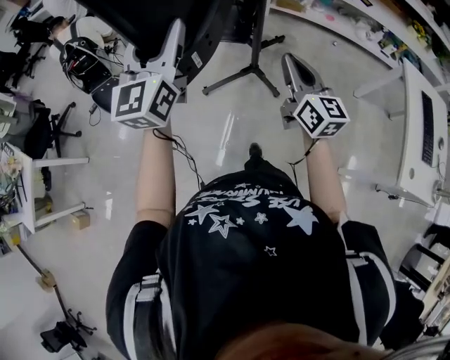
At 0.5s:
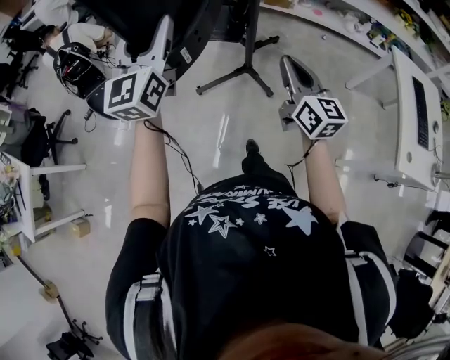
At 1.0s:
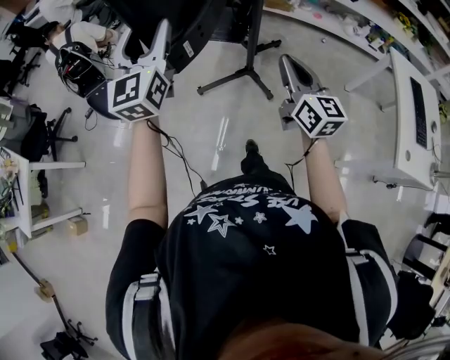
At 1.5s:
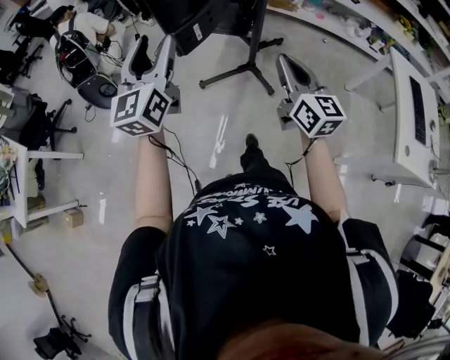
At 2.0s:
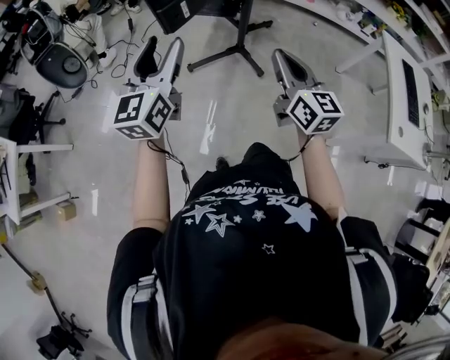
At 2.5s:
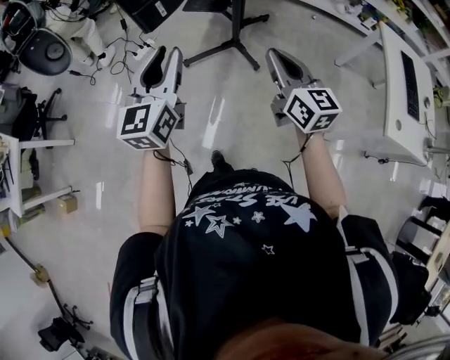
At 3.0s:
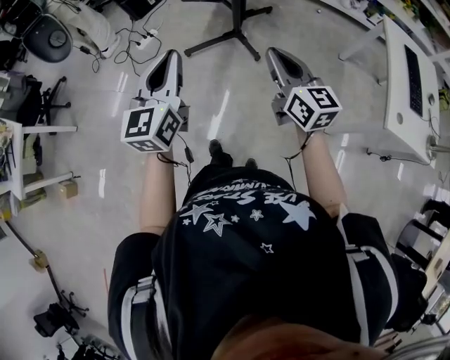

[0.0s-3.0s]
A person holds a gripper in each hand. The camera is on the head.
0.0s to 1.5s: The right gripper moves backward, about 10 cm. The left gripper is displaced backward and to the left by some 15 cm.
1.5s to 3.0s: The right gripper is displaced backward and to the right by some 15 cm; the left gripper goes approximately 25 cm backward, to the right and downward, and closes.

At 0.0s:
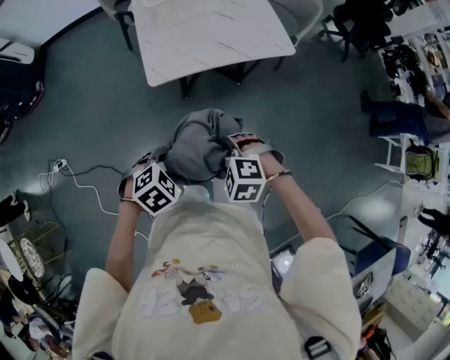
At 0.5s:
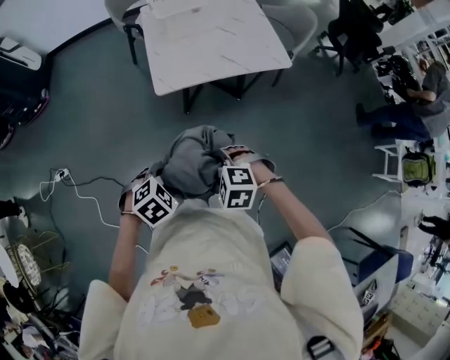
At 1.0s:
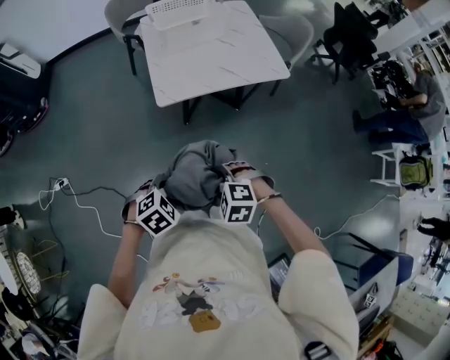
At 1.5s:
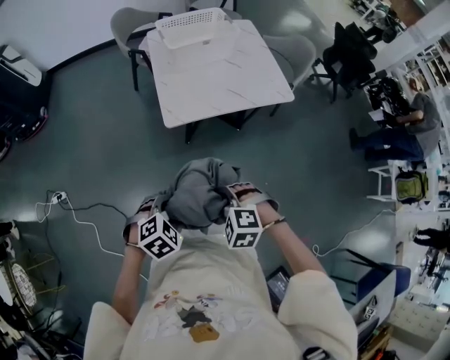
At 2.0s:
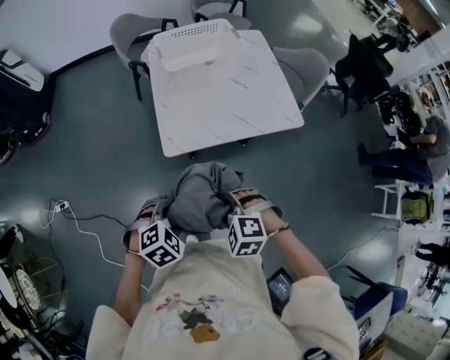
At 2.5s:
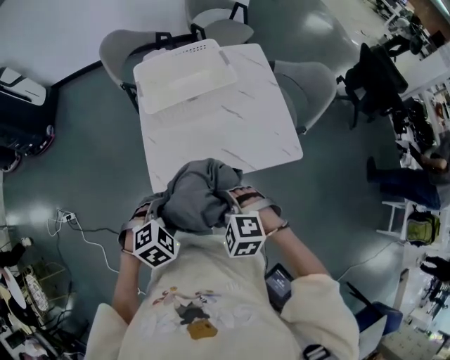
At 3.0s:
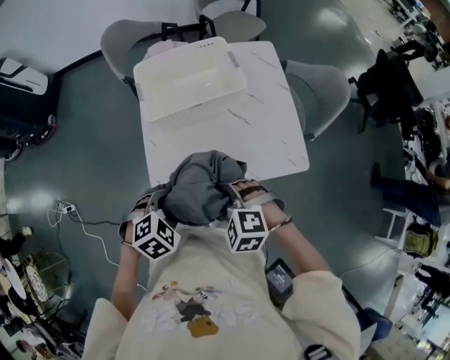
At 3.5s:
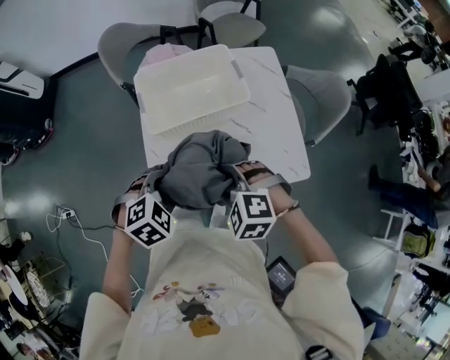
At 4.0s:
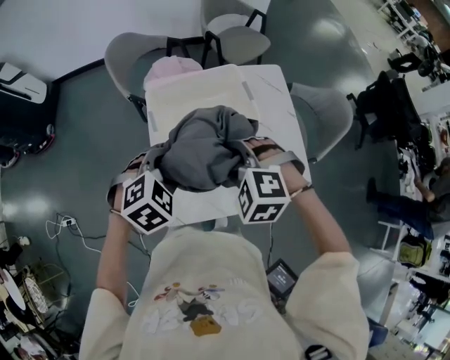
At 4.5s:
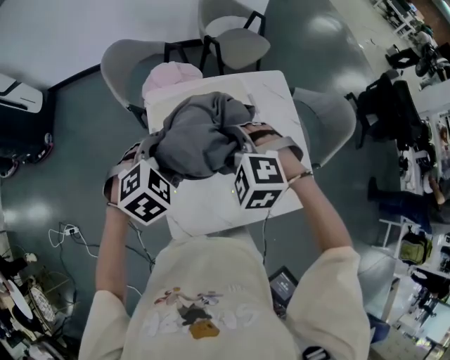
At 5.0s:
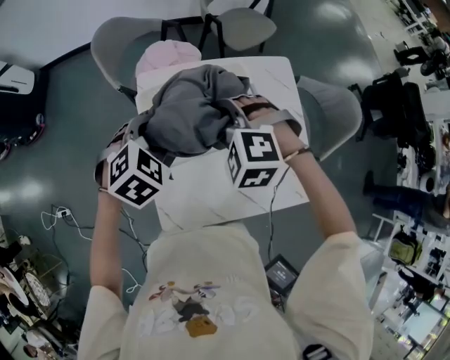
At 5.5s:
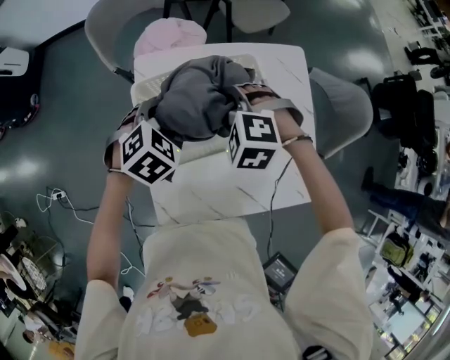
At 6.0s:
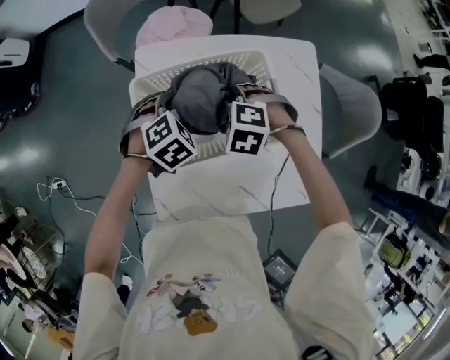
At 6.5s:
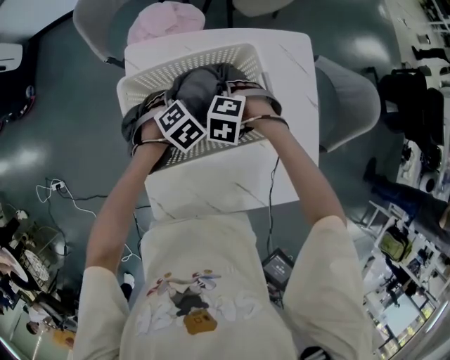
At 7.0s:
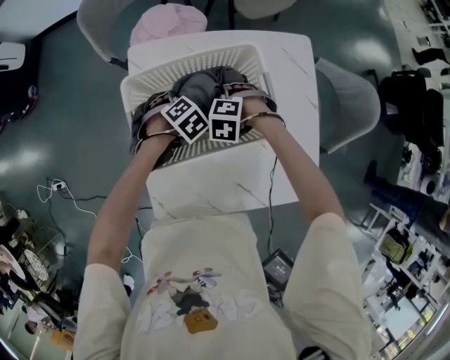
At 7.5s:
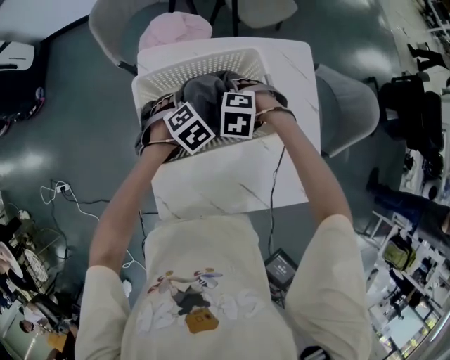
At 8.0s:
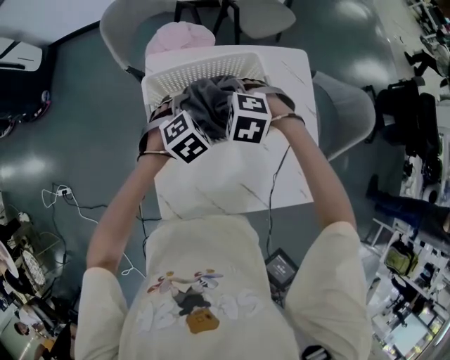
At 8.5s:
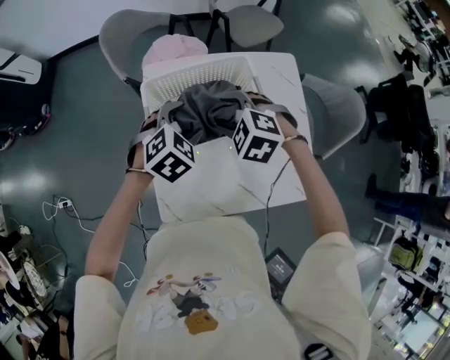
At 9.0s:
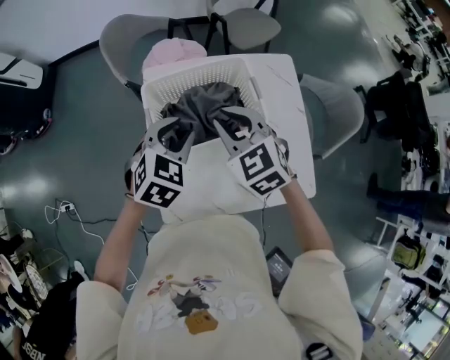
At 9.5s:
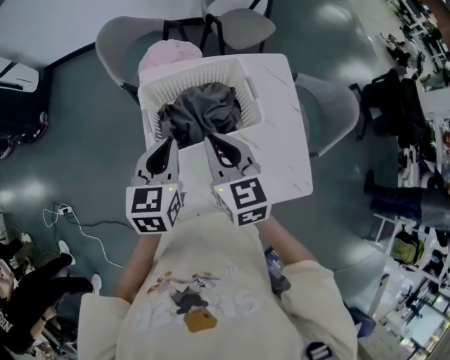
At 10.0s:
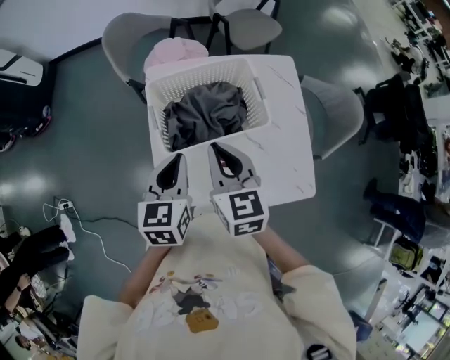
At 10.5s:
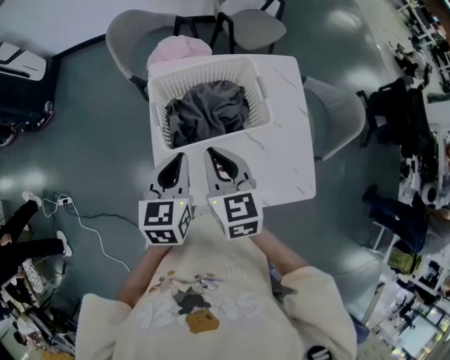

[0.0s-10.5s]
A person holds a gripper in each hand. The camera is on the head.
0.0s to 2.0s: Both grippers travel together forward and to the left, roughly 15 cm.
2.0s to 4.0s: The two grippers travel together, forward, about 50 cm.
4.0s to 6.5s: Both grippers travel together downward, approximately 25 cm. The right gripper rotates about 30 degrees; the left gripper swivels about 20 degrees.
6.5s to 8.5s: The two grippers go roughly 20 cm upward. The right gripper rotates some 30 degrees. Meanwhile the left gripper swivels some 20 degrees, and opens its fingers.
8.5s to 10.5s: The right gripper shifts some 10 cm backward and upward, rolls clockwise, seen from behind, by about 50 degrees, and closes its fingers. The left gripper heads backward, upward and to the left, covering approximately 10 cm, rotates around the line of its fingers by roughly 50 degrees, counterclockwise from behind, and closes.

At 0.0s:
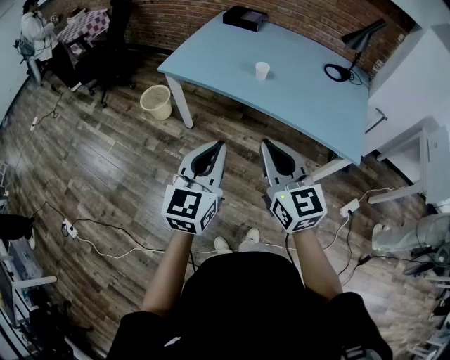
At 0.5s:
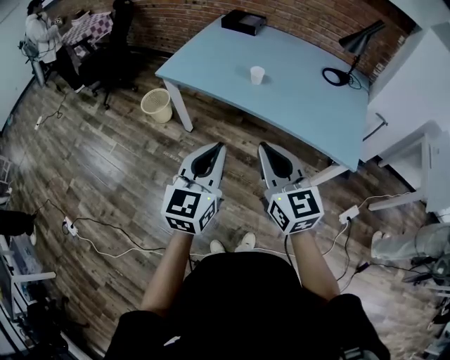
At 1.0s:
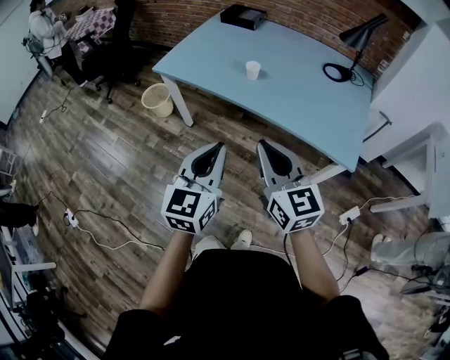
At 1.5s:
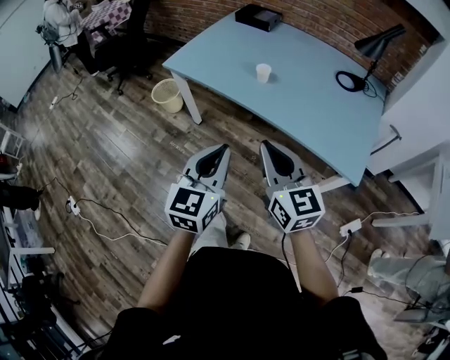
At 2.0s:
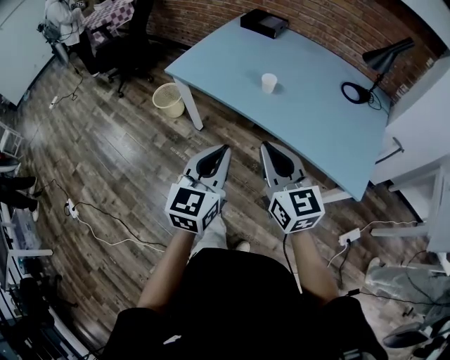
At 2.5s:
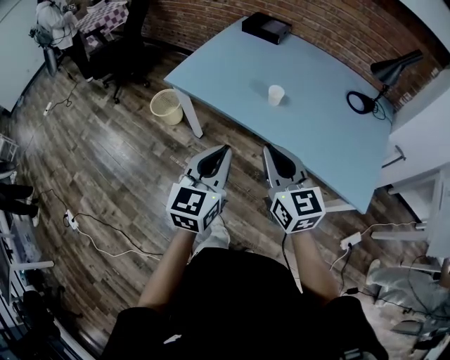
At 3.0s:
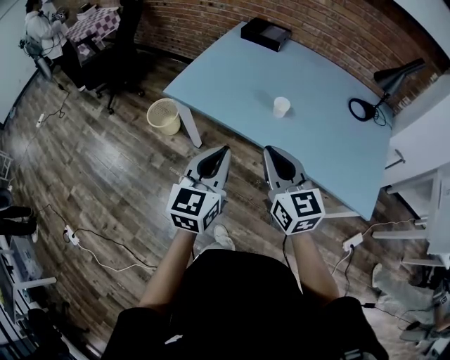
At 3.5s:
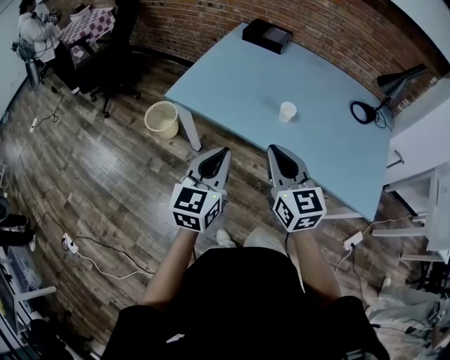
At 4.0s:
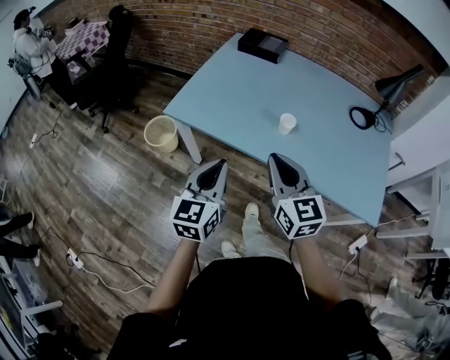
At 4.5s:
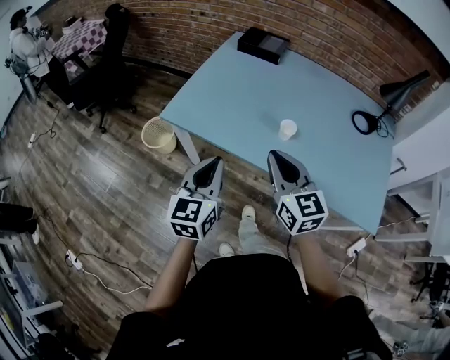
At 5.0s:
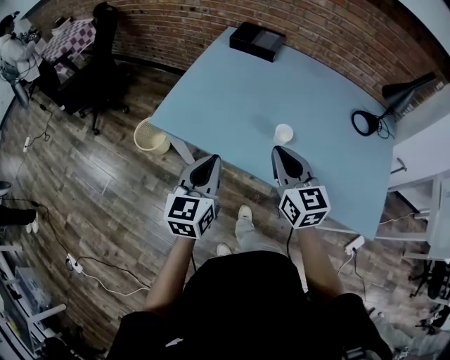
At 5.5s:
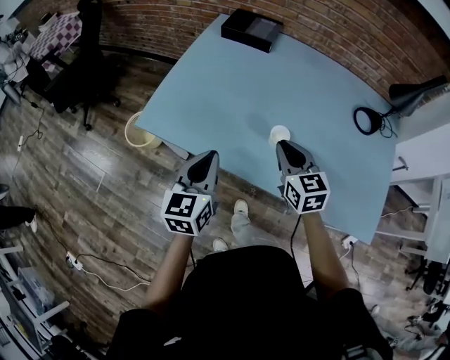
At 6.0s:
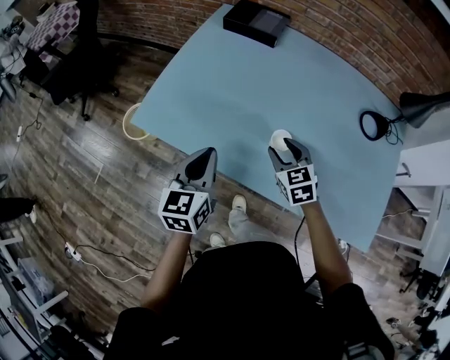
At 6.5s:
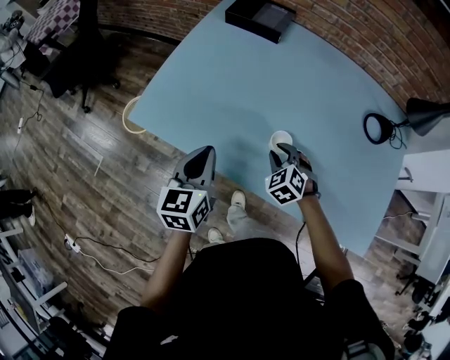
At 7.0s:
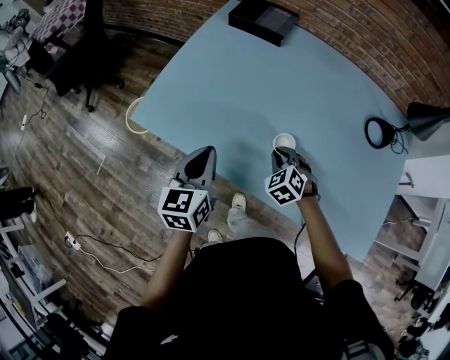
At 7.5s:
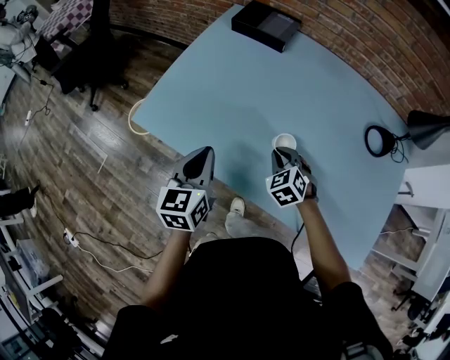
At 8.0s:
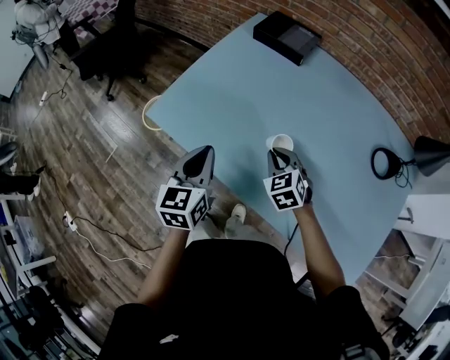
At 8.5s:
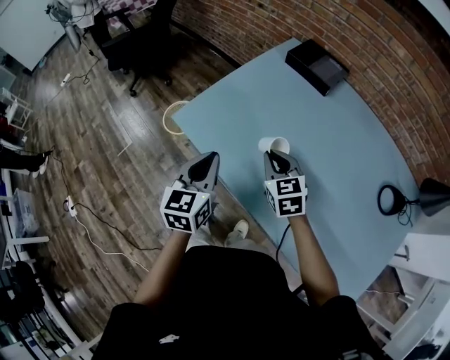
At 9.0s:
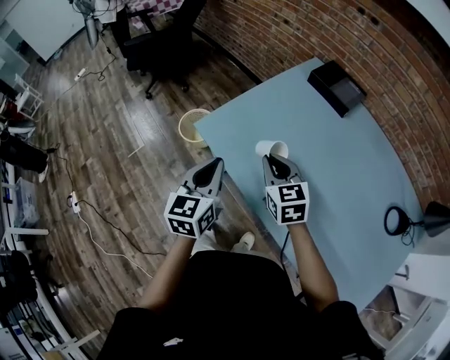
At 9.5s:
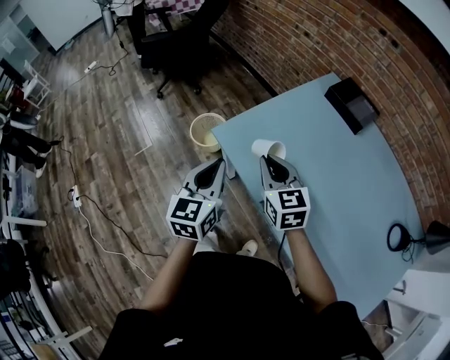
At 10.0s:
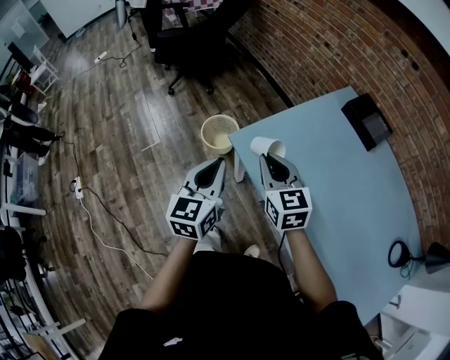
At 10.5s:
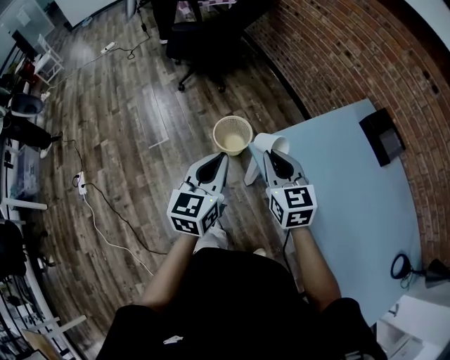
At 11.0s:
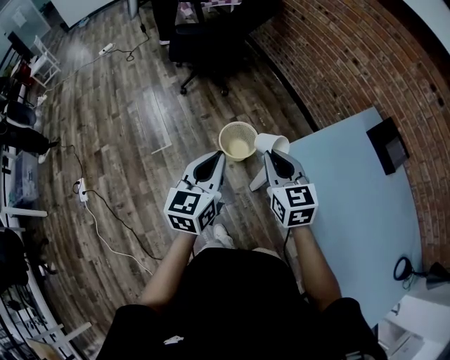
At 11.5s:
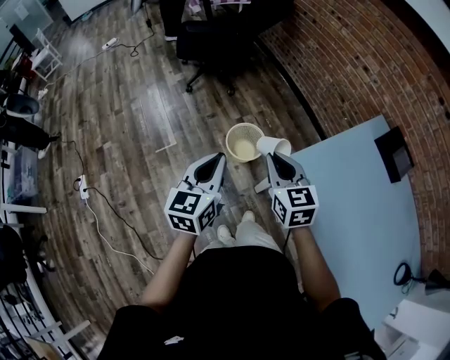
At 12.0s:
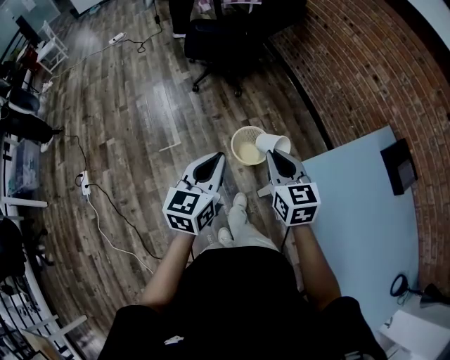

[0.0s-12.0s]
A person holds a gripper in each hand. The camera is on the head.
0.0s to 2.0s: The right gripper travels forward and to the right by roughly 10 cm. The left gripper goes about 10 cm to the right and forward.
2.0s to 4.0s: Both grippers move forward and to the left, about 25 cm.
4.0s to 6.0s: The right gripper heads forward, downward and to the right, covering about 30 cm, tilts its fingers approximately 30 degrees downward, and opens up; the left gripper is displaced forward by approximately 20 cm.
6.0s to 8.0s: The right gripper closes.
8.0s to 10.0s: The left gripper shifts roughly 25 cm to the left, and changes its angle by about 20 degrees, while the right gripper heads to the left and upward, covering about 35 cm, and turns by some 30 degrees.
10.0s to 12.0s: Both grippers travel together to the left and forward, about 25 cm.

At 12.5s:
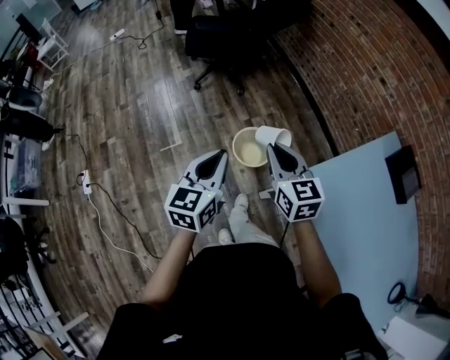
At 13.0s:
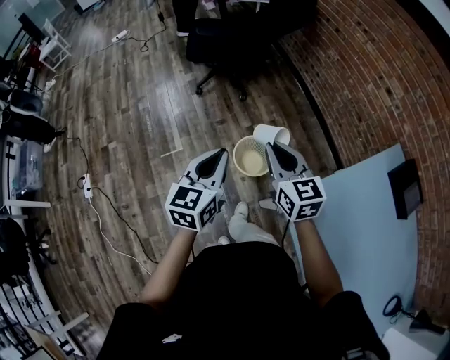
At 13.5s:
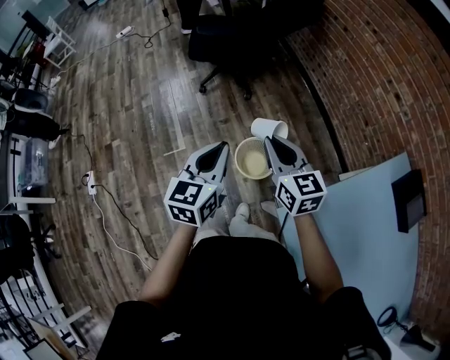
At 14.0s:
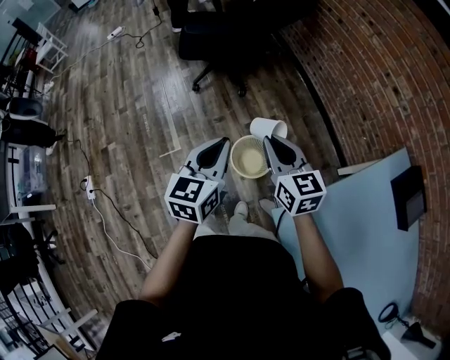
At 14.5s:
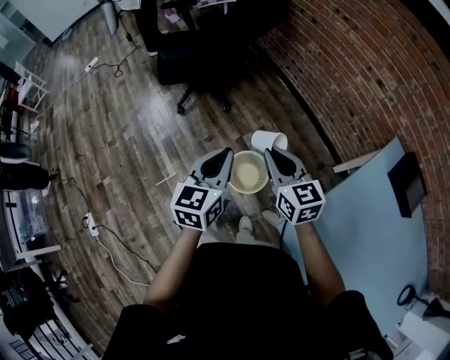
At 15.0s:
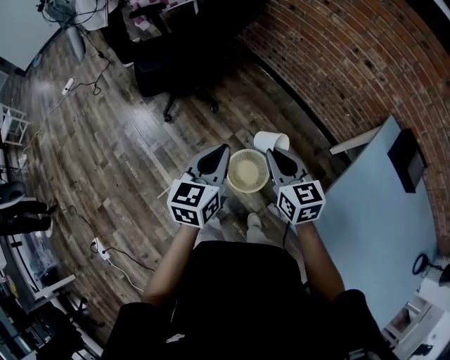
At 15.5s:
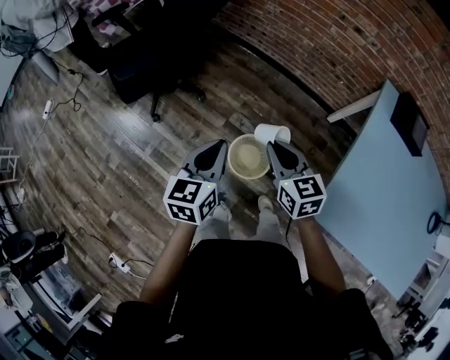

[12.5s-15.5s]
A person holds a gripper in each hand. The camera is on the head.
12.5s to 14.0s: The two grippers go roughly 15 cm forward.
14.0s to 15.5s: The right gripper moves some 10 cm, and rotates about 30 degrees. The left gripper shifts by some 15 cm, and turns by about 30 degrees.
